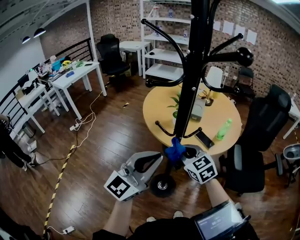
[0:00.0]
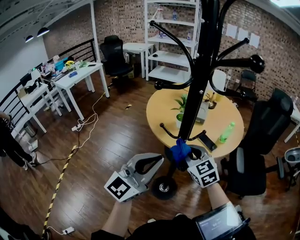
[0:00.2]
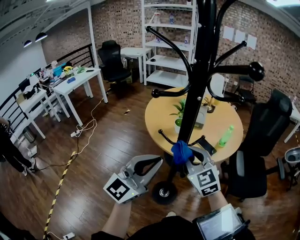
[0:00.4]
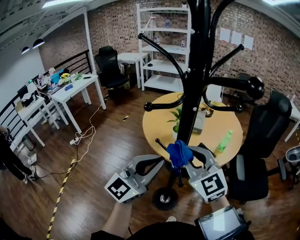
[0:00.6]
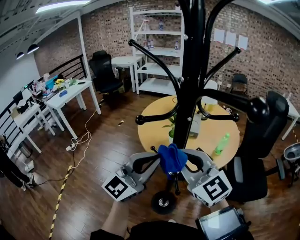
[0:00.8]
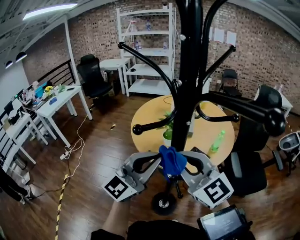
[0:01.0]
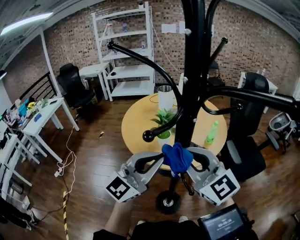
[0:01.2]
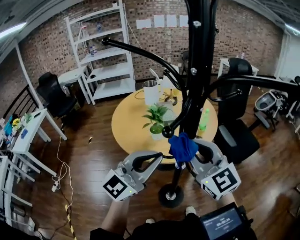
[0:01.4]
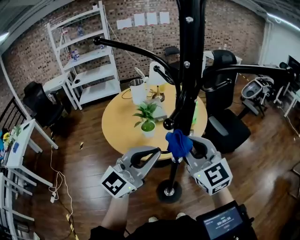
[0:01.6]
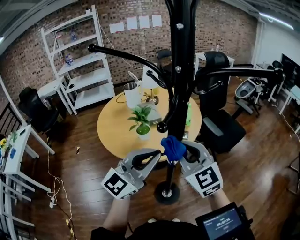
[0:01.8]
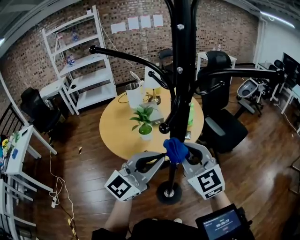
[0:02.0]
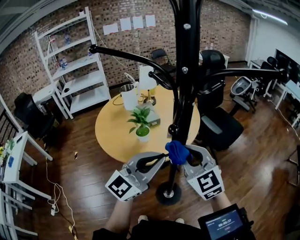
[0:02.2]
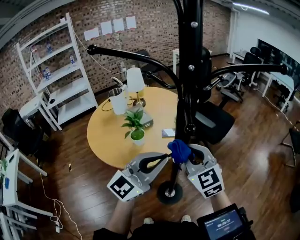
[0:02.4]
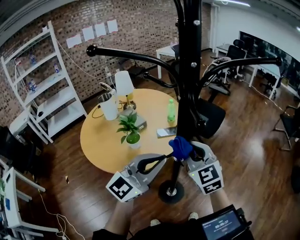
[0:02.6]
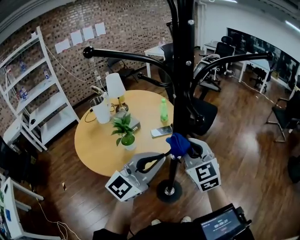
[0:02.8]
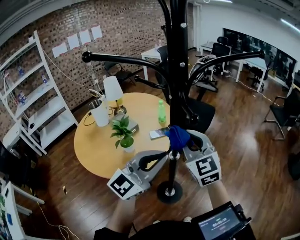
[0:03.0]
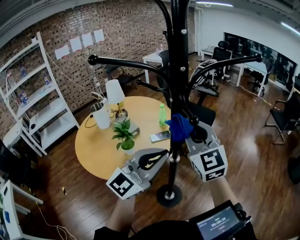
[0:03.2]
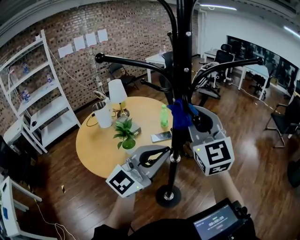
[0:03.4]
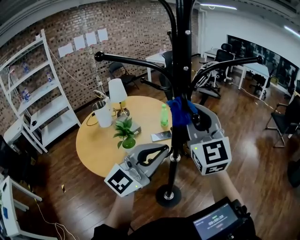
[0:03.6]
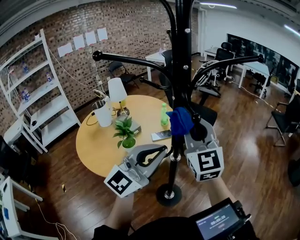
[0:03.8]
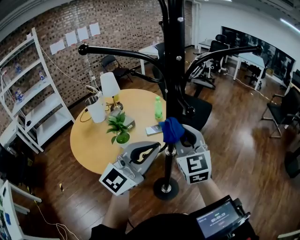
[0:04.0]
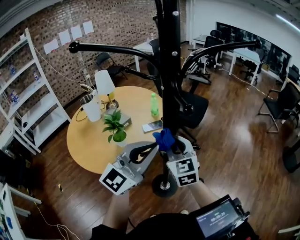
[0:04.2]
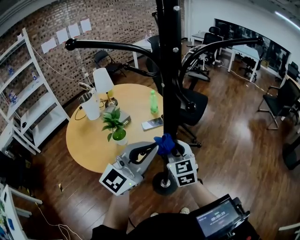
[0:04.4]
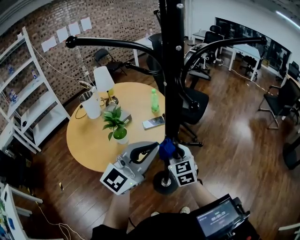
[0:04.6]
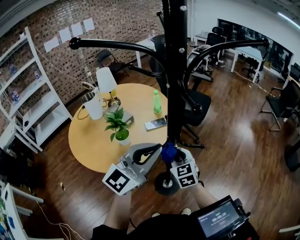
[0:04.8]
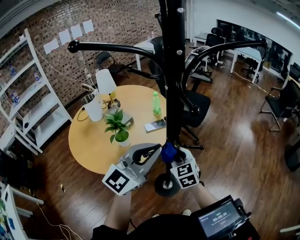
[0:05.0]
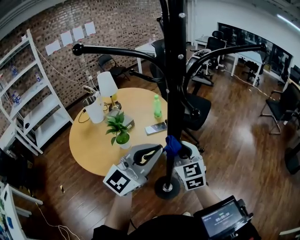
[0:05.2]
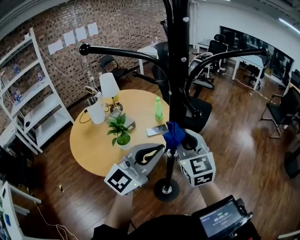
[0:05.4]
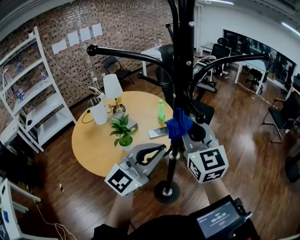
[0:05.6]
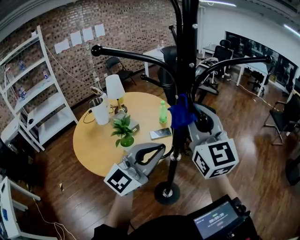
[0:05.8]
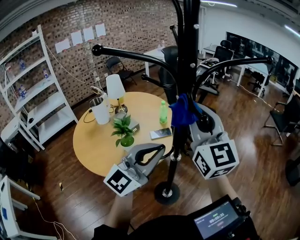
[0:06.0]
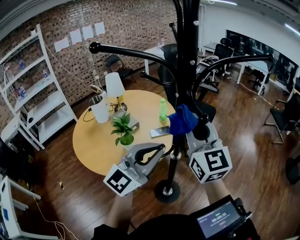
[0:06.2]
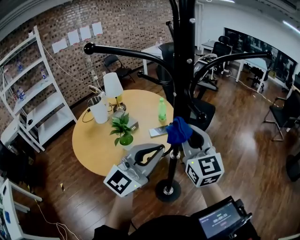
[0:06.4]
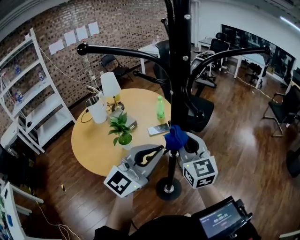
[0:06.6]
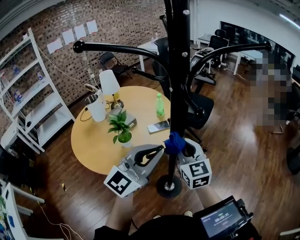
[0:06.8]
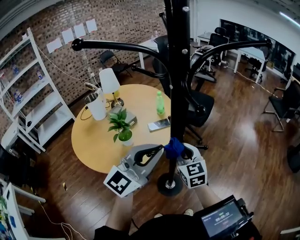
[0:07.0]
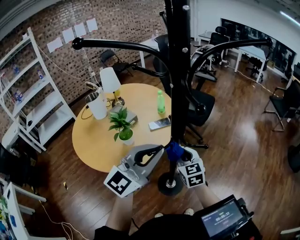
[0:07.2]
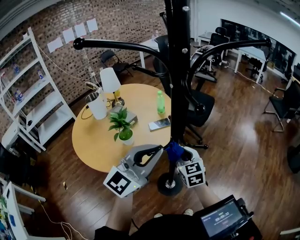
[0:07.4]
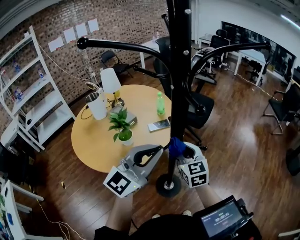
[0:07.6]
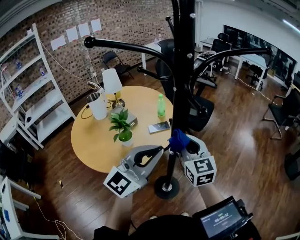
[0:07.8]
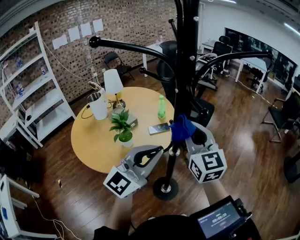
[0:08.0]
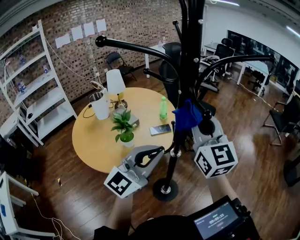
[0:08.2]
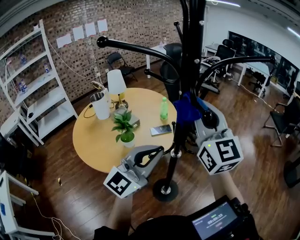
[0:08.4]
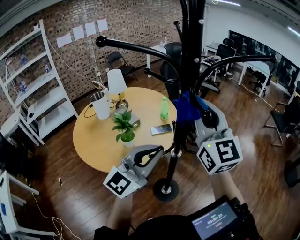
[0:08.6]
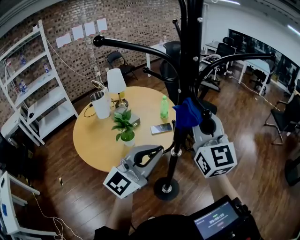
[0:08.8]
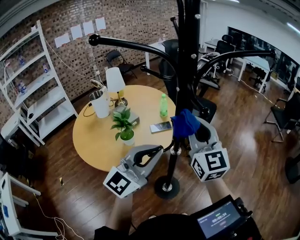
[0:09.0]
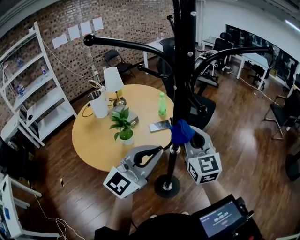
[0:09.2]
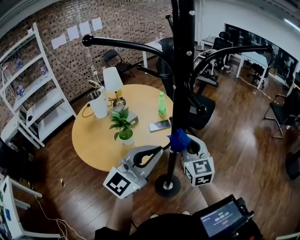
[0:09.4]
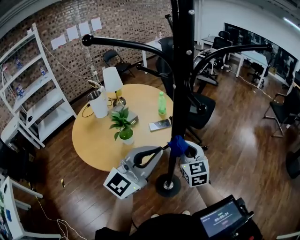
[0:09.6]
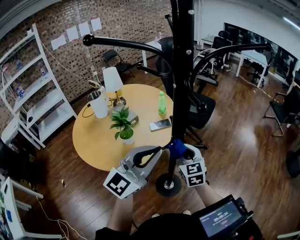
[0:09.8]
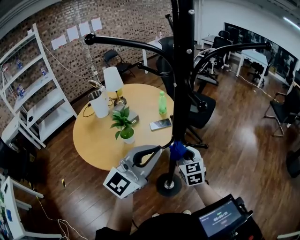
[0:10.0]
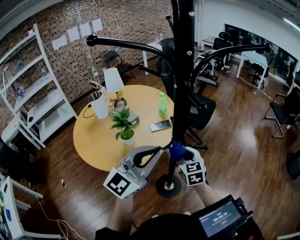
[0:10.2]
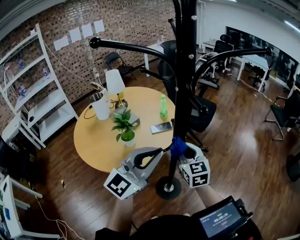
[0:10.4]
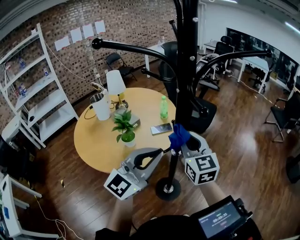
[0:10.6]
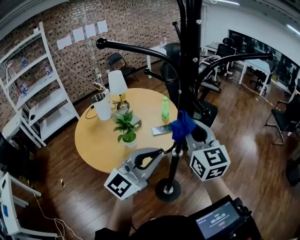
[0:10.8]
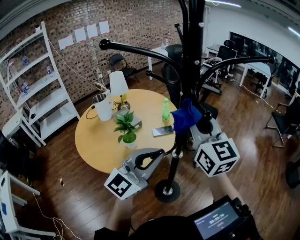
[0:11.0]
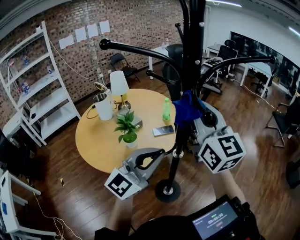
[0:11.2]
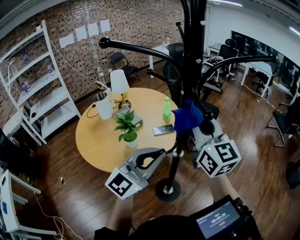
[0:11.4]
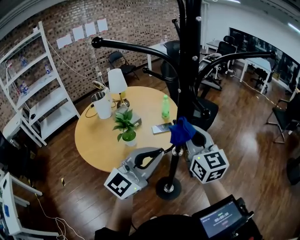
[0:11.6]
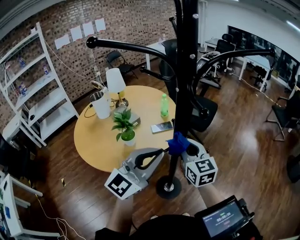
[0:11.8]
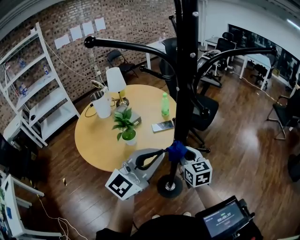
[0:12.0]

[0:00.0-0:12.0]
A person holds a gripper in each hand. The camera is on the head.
0:00.0 to 0:01.6: The right gripper is displaced upward by roughly 15 cm, and rotates roughly 50 degrees; the left gripper ends up about 15 cm from where it was, and changes its angle by approximately 40 degrees.
0:01.6 to 0:03.0: The left gripper rotates about 30 degrees, while the right gripper swivels about 40 degrees.
0:03.0 to 0:04.4: The right gripper is displaced downward by about 15 cm.
0:04.4 to 0:06.0: The right gripper travels upward by about 25 cm, and rotates some 30 degrees.
0:06.0 to 0:07.6: The right gripper moves downward, approximately 25 cm, and rotates some 30 degrees.
0:07.6 to 0:09.0: The right gripper shifts some 20 cm upward, and turns by approximately 20 degrees.
0:09.0 to 0:10.4: The right gripper moves downward, some 15 cm, and swivels roughly 20 degrees.
0:10.4 to 0:12.0: The right gripper reaches some 25 cm upward, then returns.

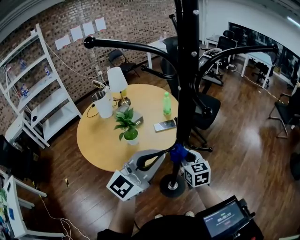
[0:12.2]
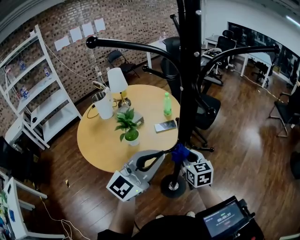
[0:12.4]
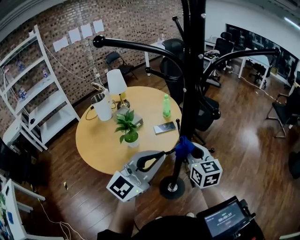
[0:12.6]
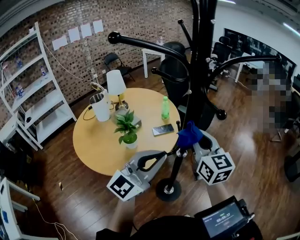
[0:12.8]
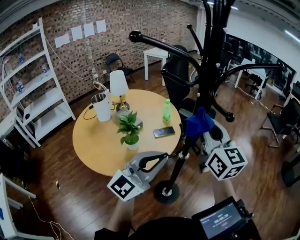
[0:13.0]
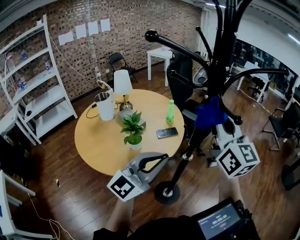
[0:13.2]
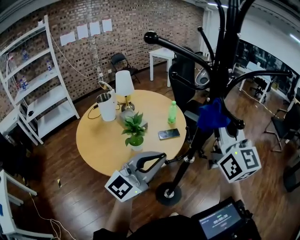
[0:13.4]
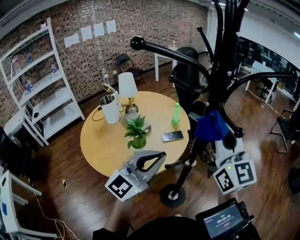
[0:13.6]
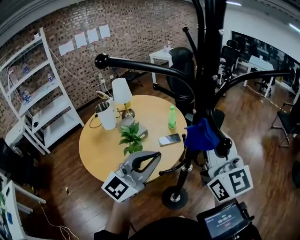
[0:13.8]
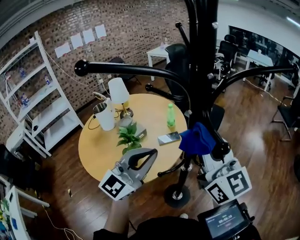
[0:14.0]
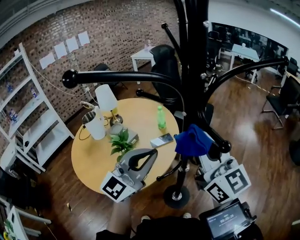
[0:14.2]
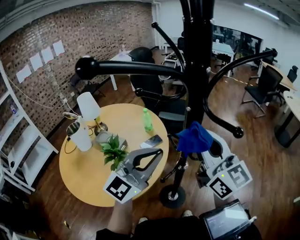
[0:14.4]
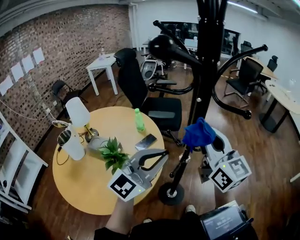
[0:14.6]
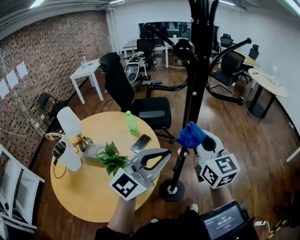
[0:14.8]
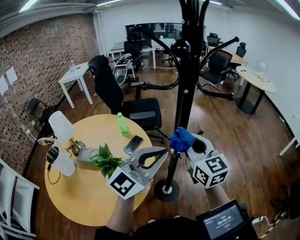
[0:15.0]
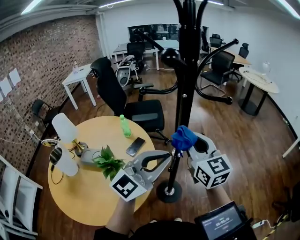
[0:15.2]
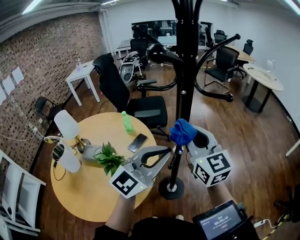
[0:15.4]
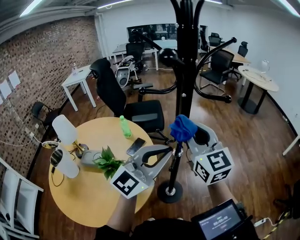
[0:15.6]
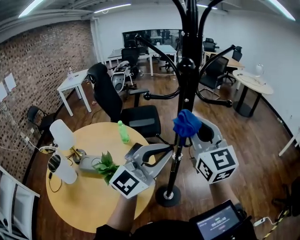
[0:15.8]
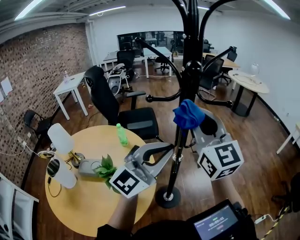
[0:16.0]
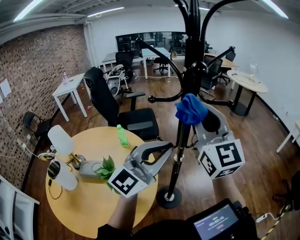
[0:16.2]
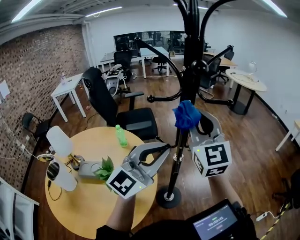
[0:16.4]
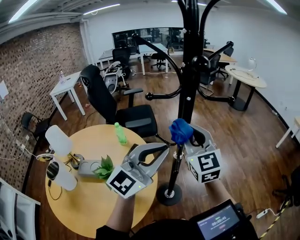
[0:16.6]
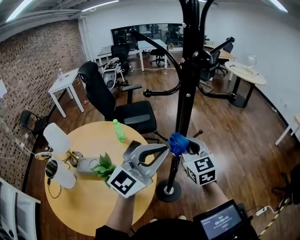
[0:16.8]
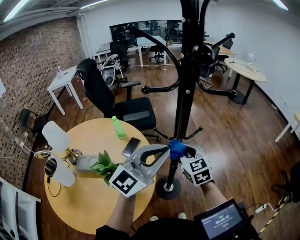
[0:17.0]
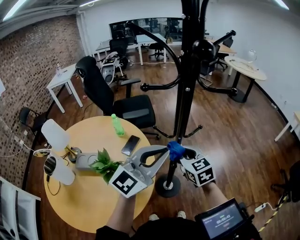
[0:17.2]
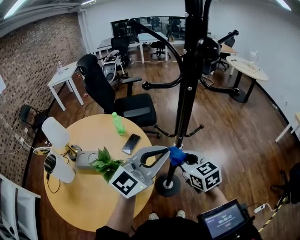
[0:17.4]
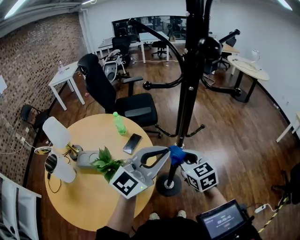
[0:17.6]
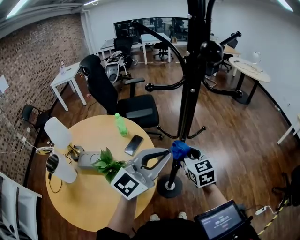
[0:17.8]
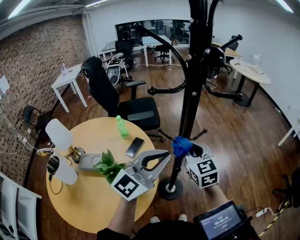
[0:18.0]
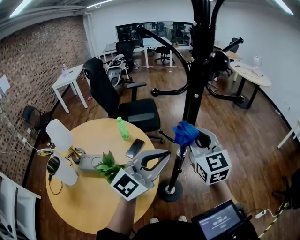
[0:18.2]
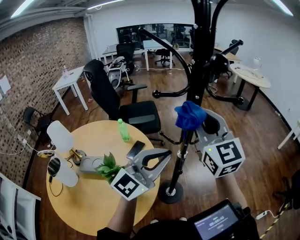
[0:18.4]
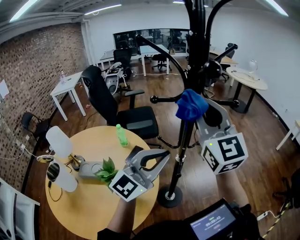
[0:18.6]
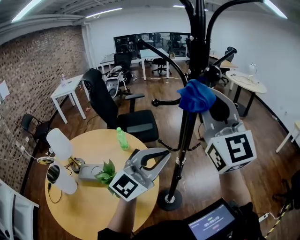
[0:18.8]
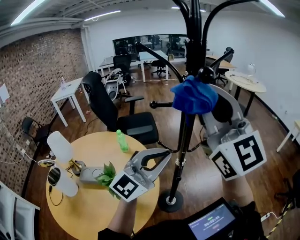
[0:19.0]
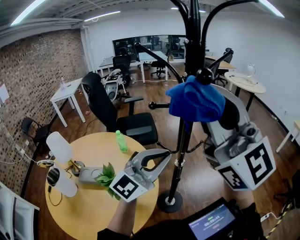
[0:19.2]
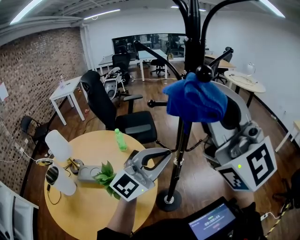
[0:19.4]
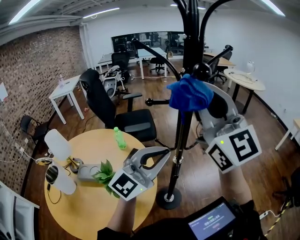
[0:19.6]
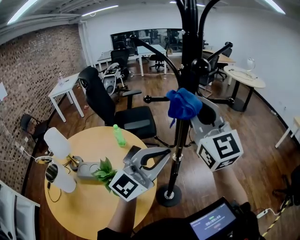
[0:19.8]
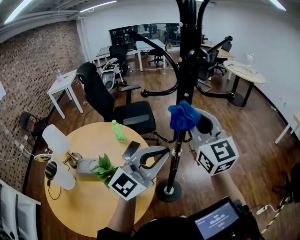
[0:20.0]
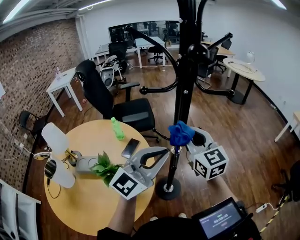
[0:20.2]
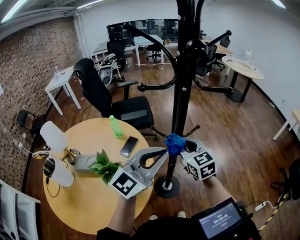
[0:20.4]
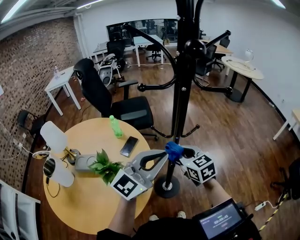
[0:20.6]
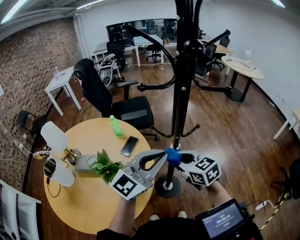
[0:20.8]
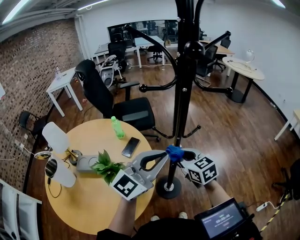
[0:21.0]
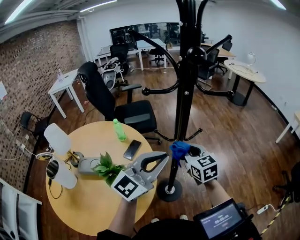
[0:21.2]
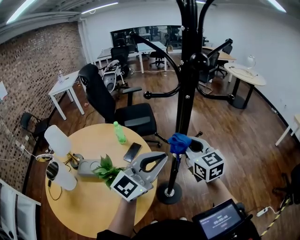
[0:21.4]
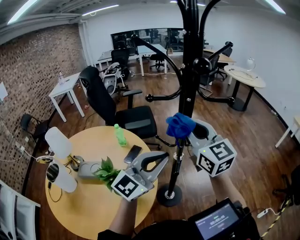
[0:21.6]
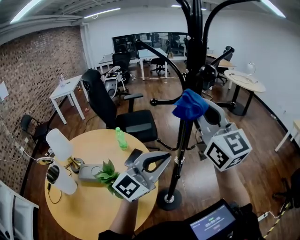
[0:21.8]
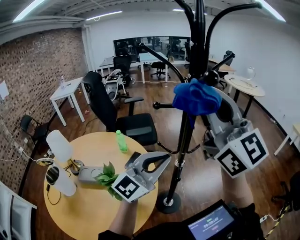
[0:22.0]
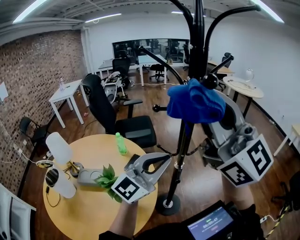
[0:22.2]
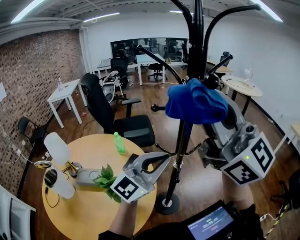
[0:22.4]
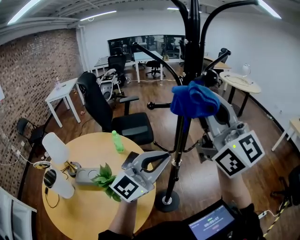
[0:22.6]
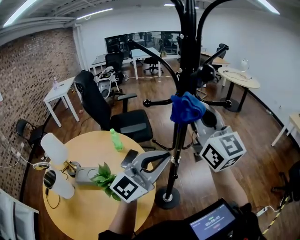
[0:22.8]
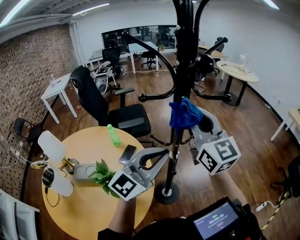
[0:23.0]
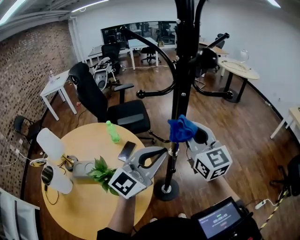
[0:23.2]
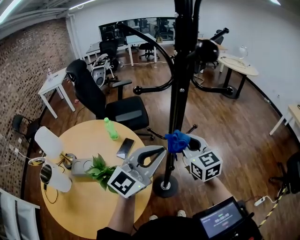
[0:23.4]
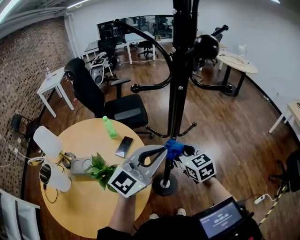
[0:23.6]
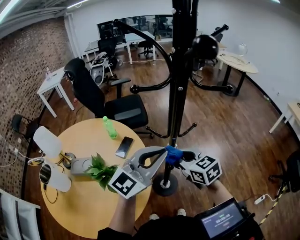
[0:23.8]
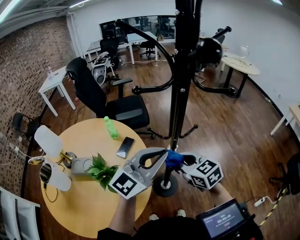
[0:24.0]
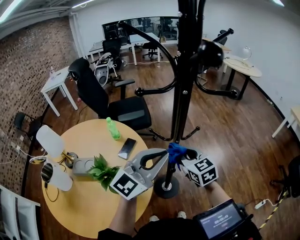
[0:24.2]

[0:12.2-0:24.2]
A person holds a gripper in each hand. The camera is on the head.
0:12.2 to 0:13.8: The right gripper heads upward, covering about 30 cm, and tips its fingers upward by roughly 40 degrees. Meanwhile the left gripper heads to the left, covering approximately 5 cm.
0:13.8 to 0:15.2: The left gripper turns by some 50 degrees; the right gripper moves downward, some 10 cm, and swivels some 40 degrees.
0:15.2 to 0:16.6: The right gripper goes upward and returns, approximately 15 cm each way, and rotates about 20 degrees.
0:16.6 to 0:18.2: The right gripper goes downward and returns, approximately 15 cm each way.
0:18.2 to 0:19.8: The right gripper shifts some 15 cm upward.
0:19.8 to 0:21.2: The right gripper goes about 30 cm downward, and tips its fingers downward by roughly 40 degrees.
0:21.2 to 0:22.6: The right gripper heads upward, covering some 35 cm, and tips its fingers upward by some 50 degrees.
0:22.6 to 0:24.2: The right gripper is displaced downward by about 40 cm, and angles its fingers downward, by about 50 degrees.
